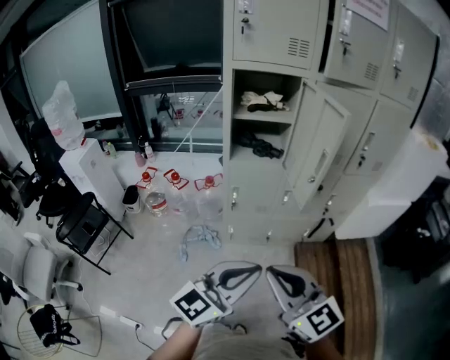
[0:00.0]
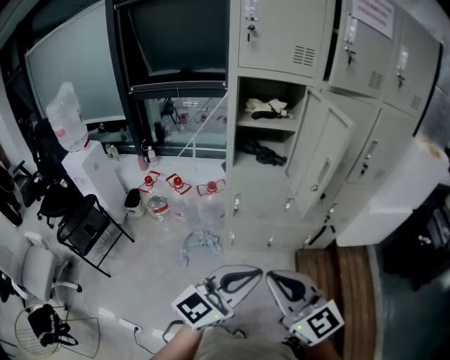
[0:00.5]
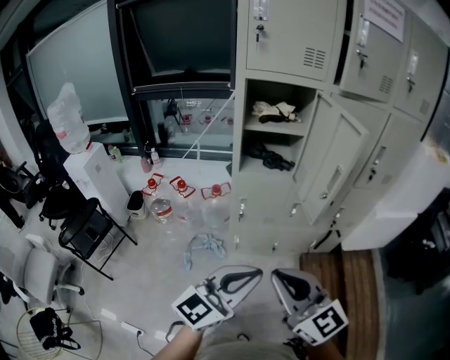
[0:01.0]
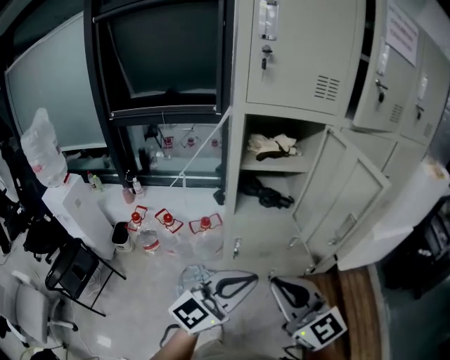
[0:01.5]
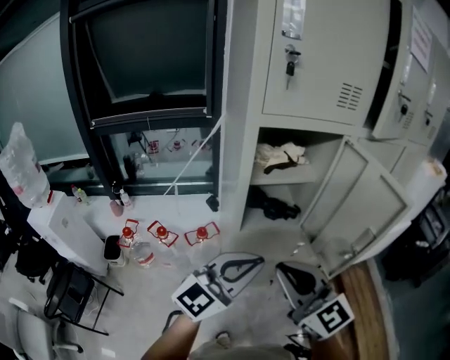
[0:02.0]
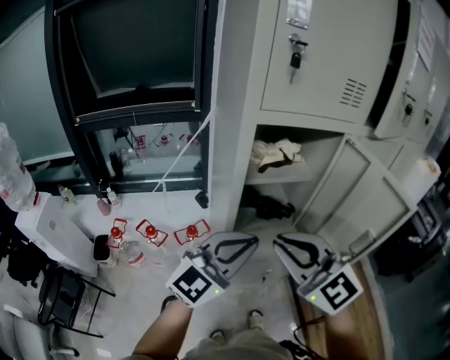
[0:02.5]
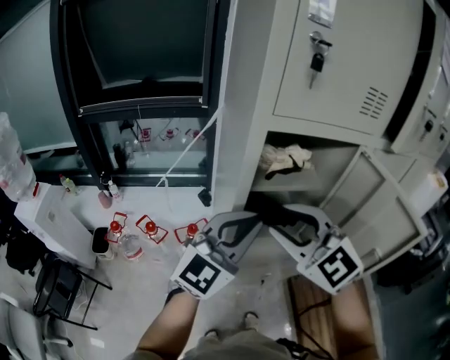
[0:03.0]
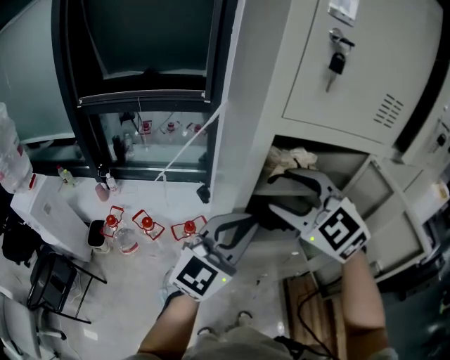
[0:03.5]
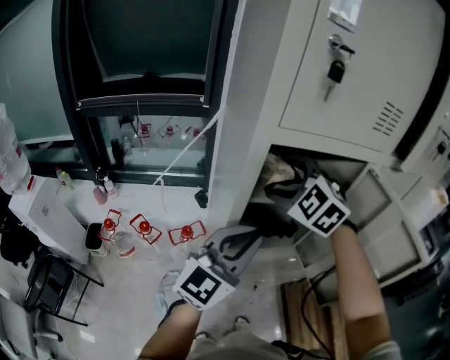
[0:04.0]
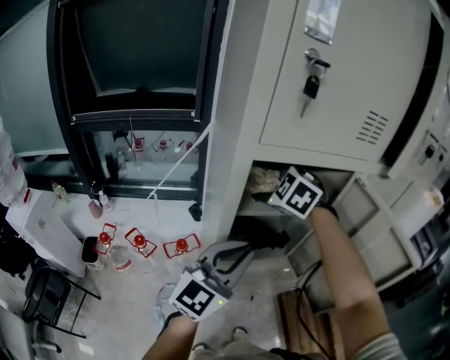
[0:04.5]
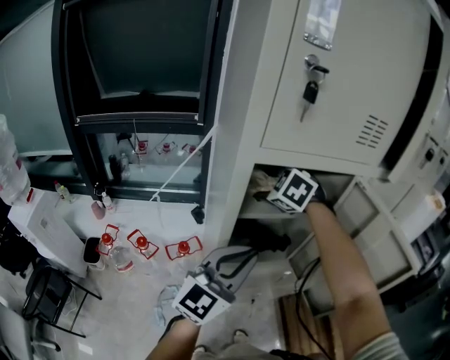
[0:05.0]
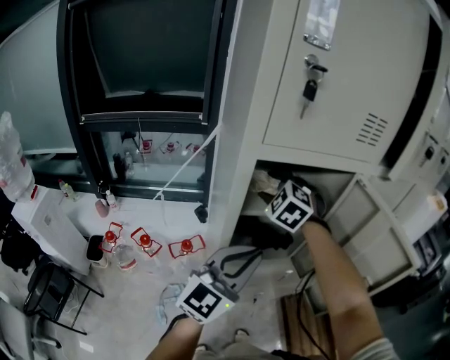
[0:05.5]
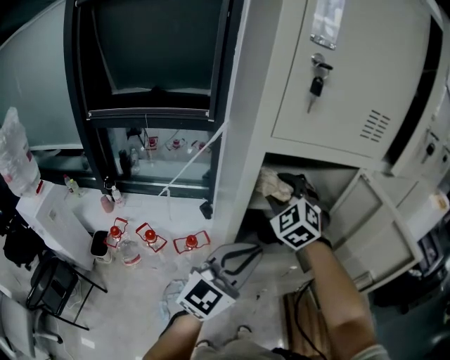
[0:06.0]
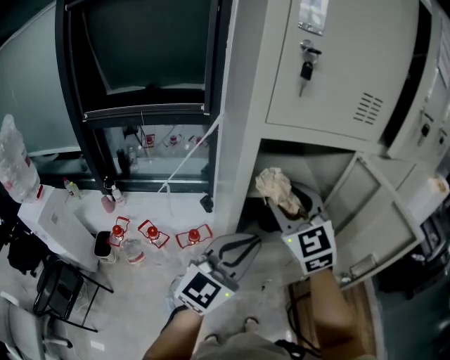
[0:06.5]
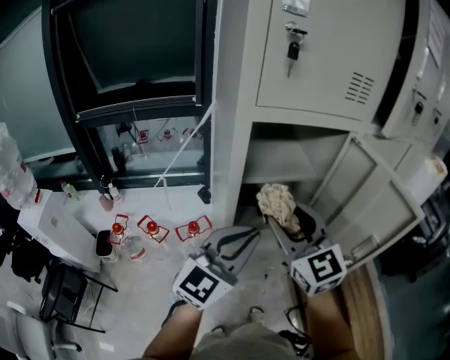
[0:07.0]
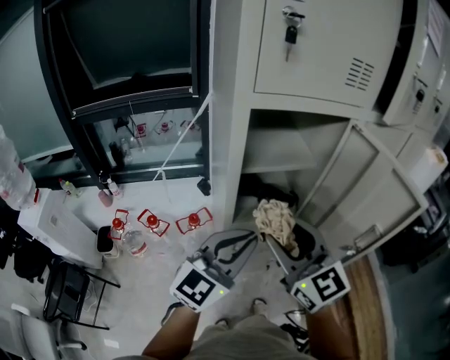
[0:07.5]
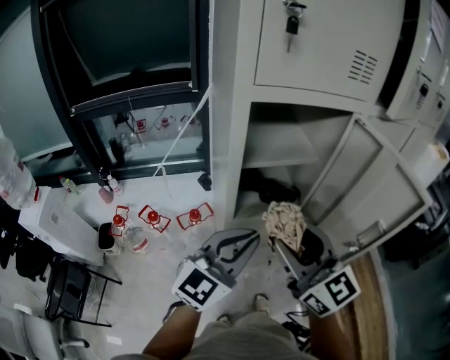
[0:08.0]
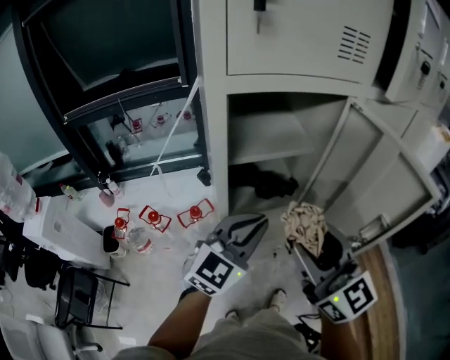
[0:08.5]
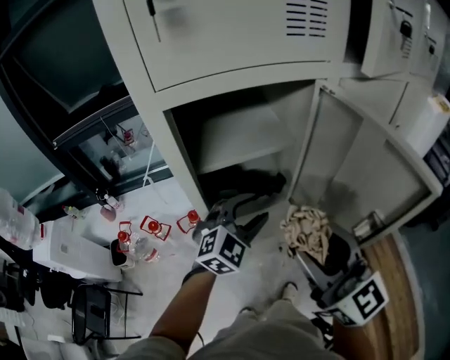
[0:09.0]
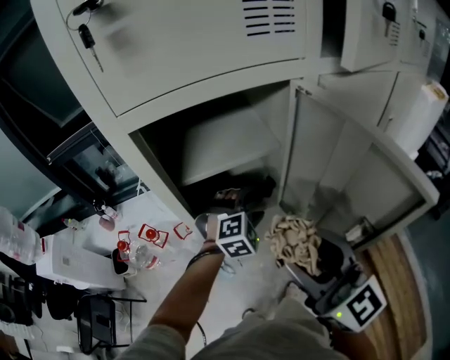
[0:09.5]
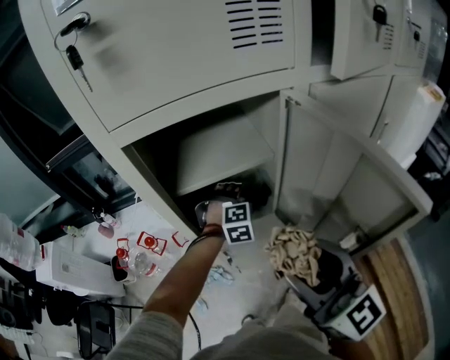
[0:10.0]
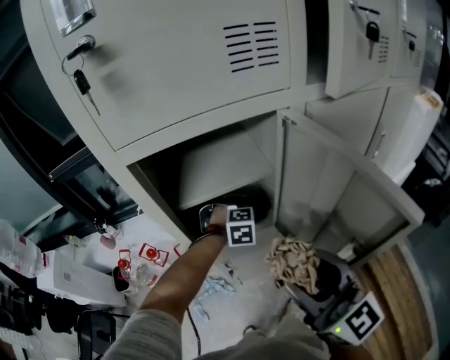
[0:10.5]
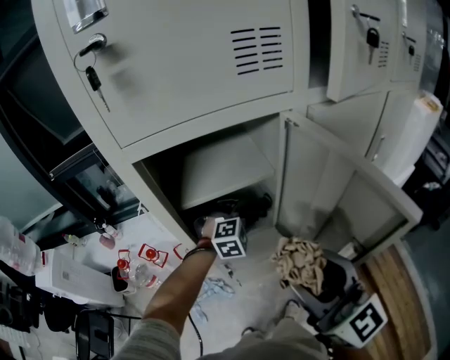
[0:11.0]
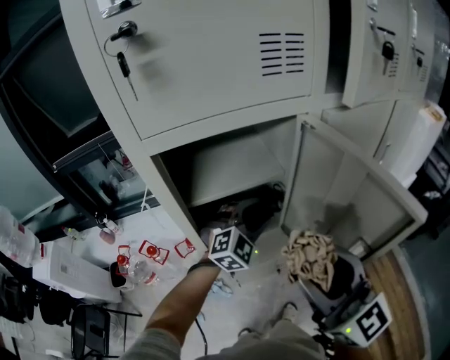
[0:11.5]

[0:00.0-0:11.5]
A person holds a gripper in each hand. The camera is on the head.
0:00.0 to 0:02.0: The two grippers go approximately 30 cm forward and to the left.
0:02.0 to 0:04.0: The left gripper moves forward, roughly 15 cm; the right gripper moves forward, approximately 30 cm, points its fingers some 30 degrees further downward, and opens its fingers.
0:04.0 to 0:06.0: The right gripper closes.
0:06.0 to 0:07.5: The left gripper changes place by some 5 cm; the right gripper is displaced backward by some 25 cm, and twists about 40 degrees clockwise, seen from behind.
0:07.5 to 0:09.5: The left gripper is displaced forward, downward and to the right by about 30 cm, tips its fingers downward by about 40 degrees, and opens. The right gripper travels to the right by some 10 cm.
0:09.5 to 0:11.5: The left gripper is displaced upward by some 5 cm.

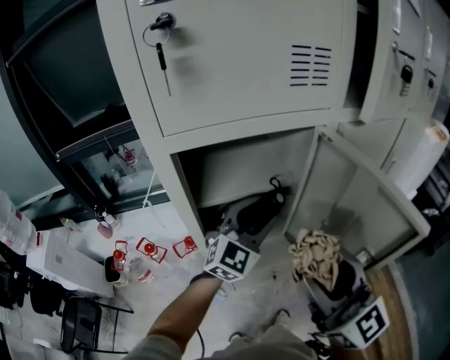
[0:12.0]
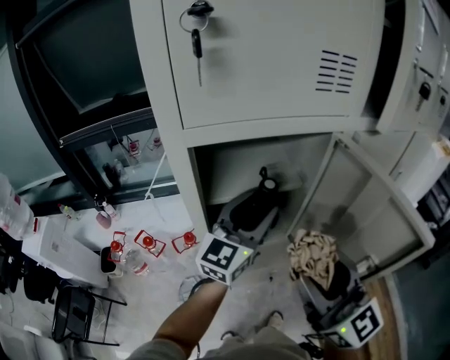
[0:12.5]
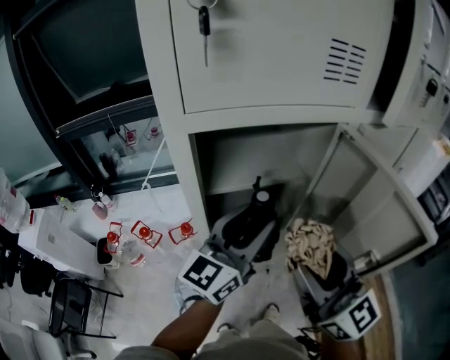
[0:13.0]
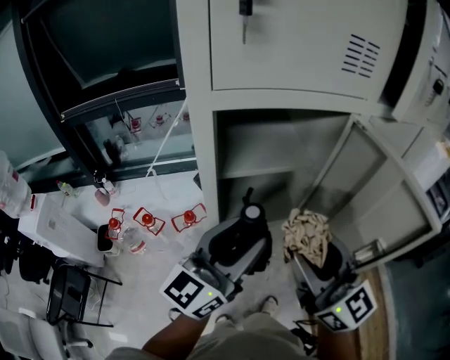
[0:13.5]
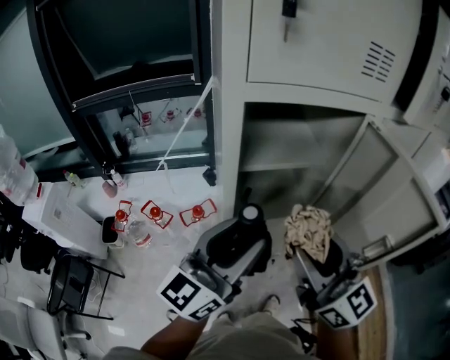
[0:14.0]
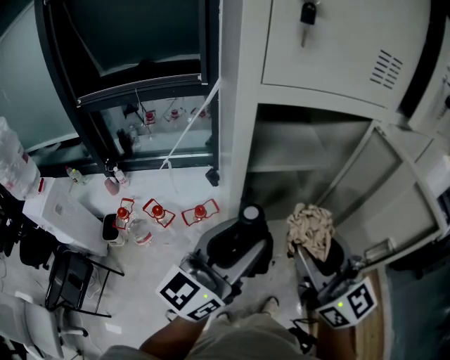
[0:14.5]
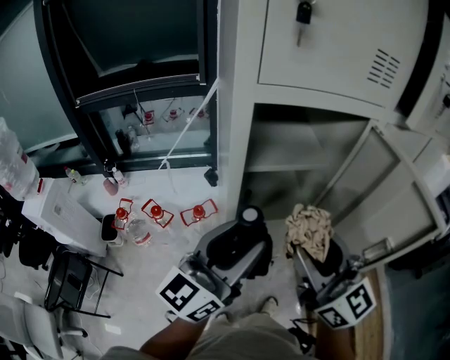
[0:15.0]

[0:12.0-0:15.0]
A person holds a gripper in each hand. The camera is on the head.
0:12.0 to 0:13.5: The right gripper ends up about 5 cm from where it was. The left gripper travels backward and to the left by some 15 cm, and changes its angle by approximately 40 degrees.
0:13.5 to 0:15.0: The left gripper ends up approximately 5 cm from where it was.

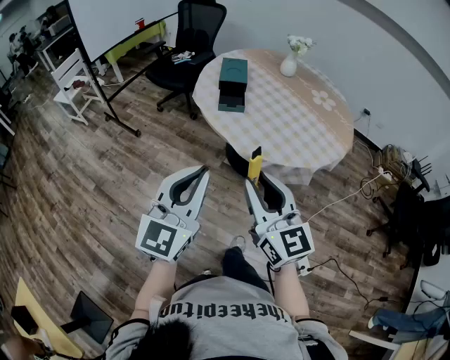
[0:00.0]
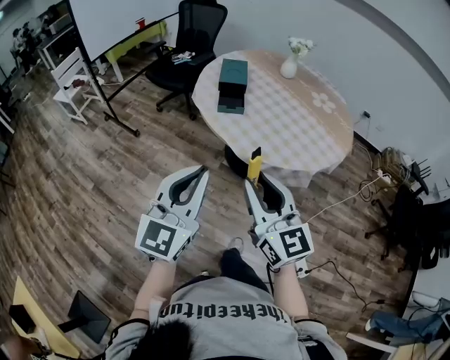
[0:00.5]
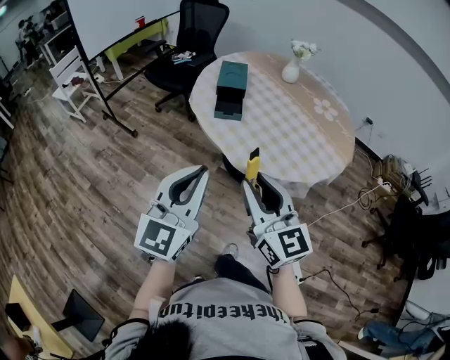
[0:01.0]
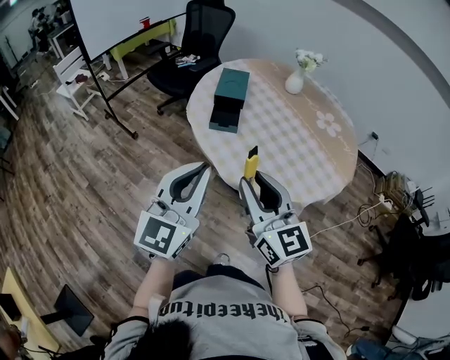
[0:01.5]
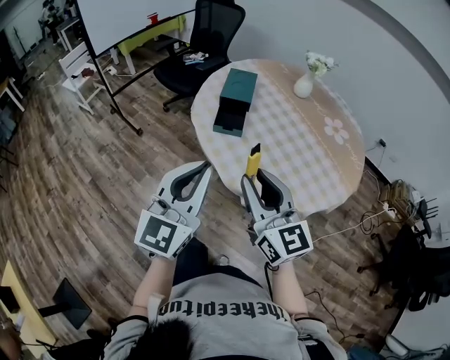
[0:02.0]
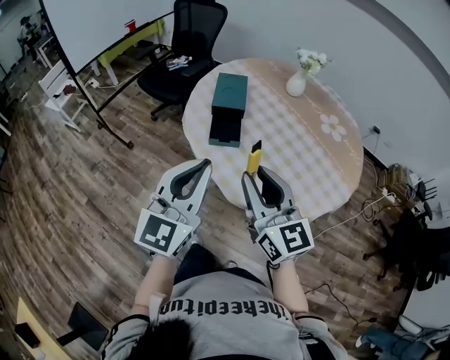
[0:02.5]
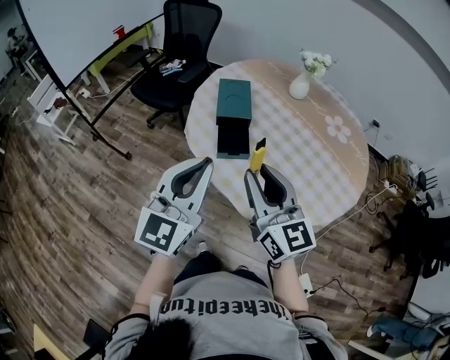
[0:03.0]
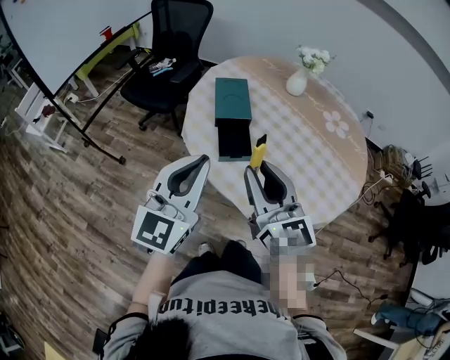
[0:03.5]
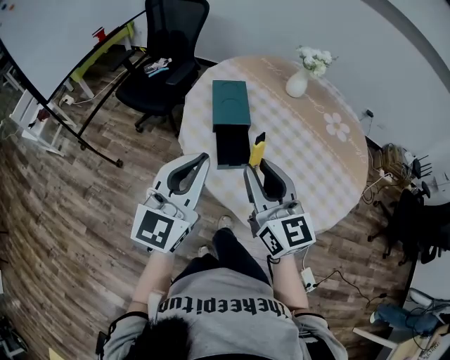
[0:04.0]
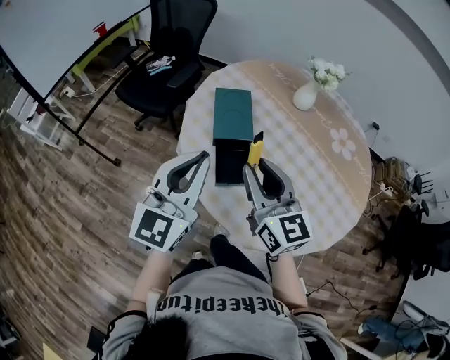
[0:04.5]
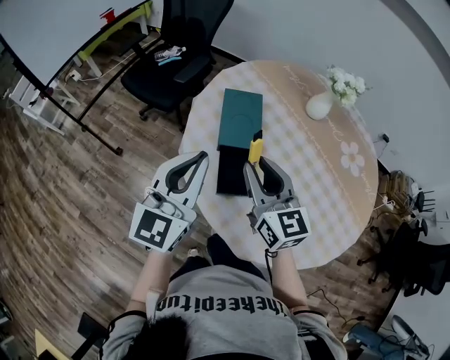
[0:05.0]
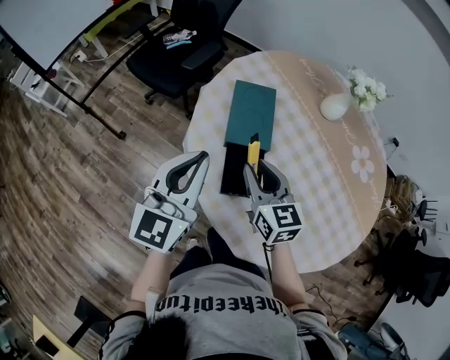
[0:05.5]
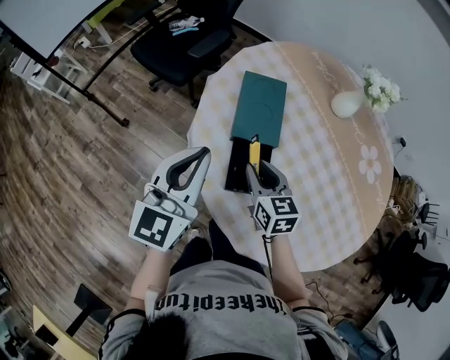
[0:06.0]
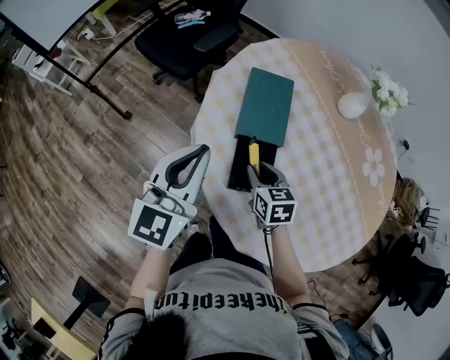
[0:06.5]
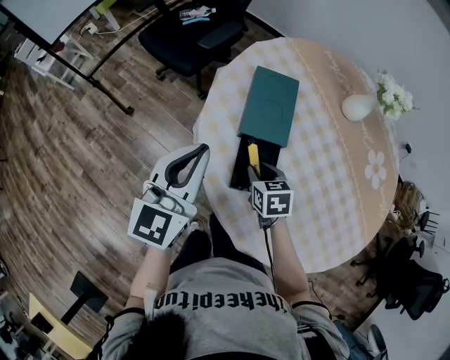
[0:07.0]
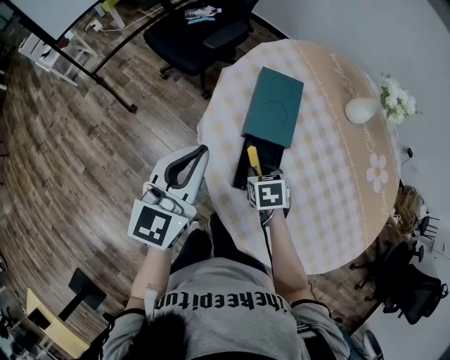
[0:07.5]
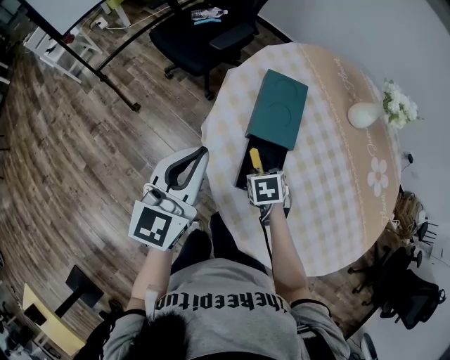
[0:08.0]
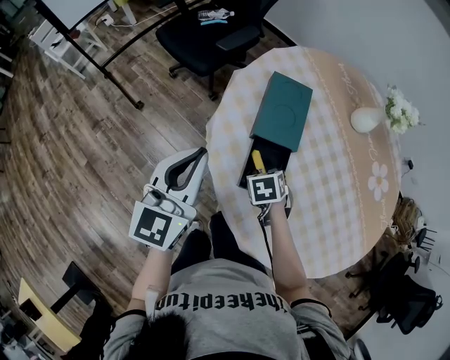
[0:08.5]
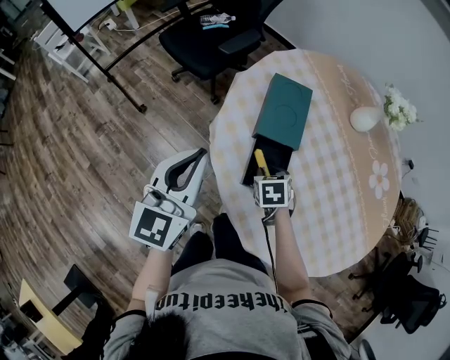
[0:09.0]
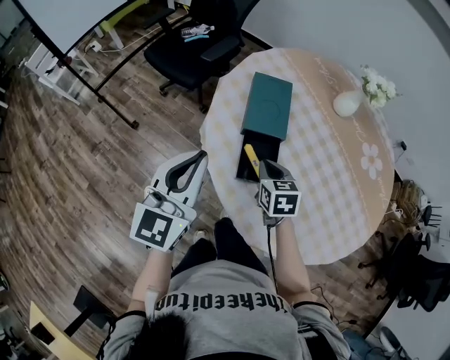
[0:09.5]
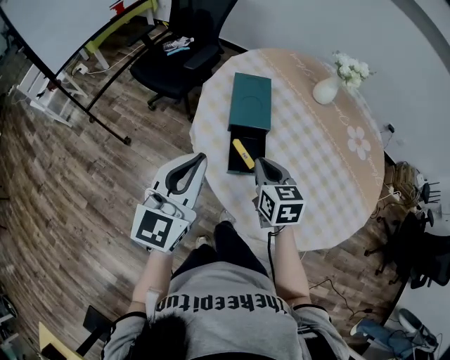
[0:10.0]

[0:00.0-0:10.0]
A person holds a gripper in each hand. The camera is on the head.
0:00.0 to 0:02.0: The left gripper heads forward and to the right, covering some 15 cm. The right gripper is displaced forward by roughly 15 cm.
0:02.0 to 0:04.0: The grippers both shift forward and to the left by approximately 25 cm.
0:04.0 to 0:06.0: The right gripper travels downward and forward by about 30 cm, and tips its fingers downward by approximately 30 degrees. The left gripper goes about 20 cm forward and downward.
0:06.0 to 0:08.0: The right gripper heads downward, covering about 10 cm, and tilts its fingers about 40 degrees downward.
0:08.0 to 0:10.0: The right gripper heads upward and backward, covering about 15 cm, tilts its fingers about 40 degrees upward, and closes up. The left gripper heads backward and upward, covering about 10 cm.

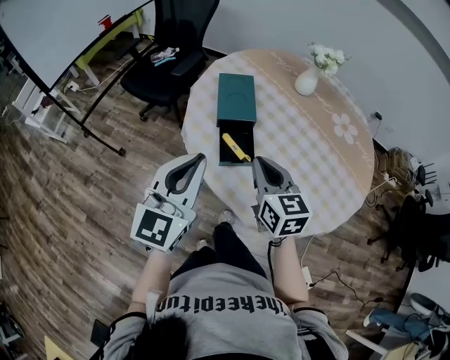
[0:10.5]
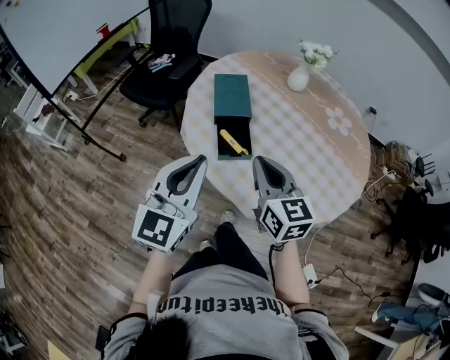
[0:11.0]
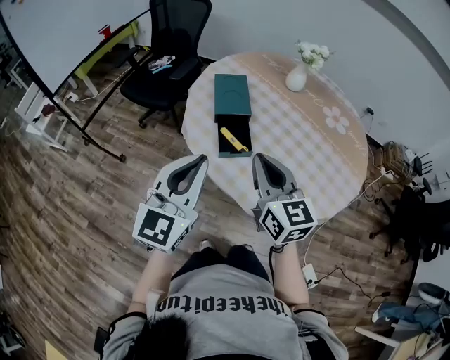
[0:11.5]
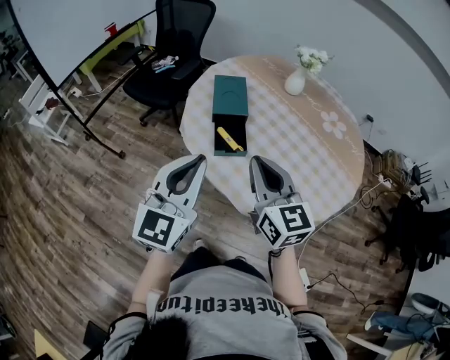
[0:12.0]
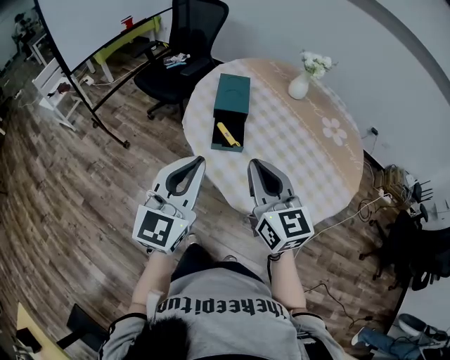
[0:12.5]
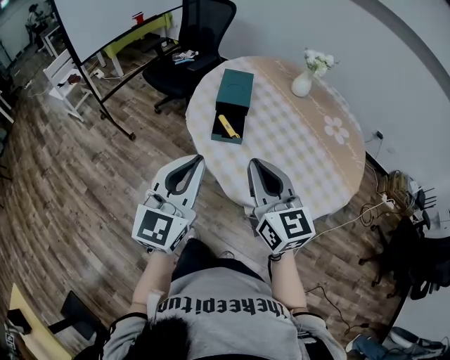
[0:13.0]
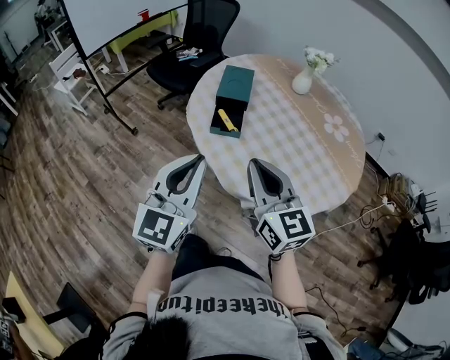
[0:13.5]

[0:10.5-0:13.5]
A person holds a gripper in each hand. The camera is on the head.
0:10.5 to 0:12.0: The right gripper heads backward and upward, covering some 10 cm. The left gripper heads backward, covering about 10 cm.
0:12.0 to 0:13.5: Both grippers travel together backward and to the right, some 15 cm.
